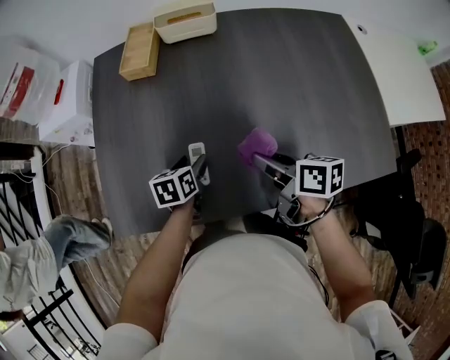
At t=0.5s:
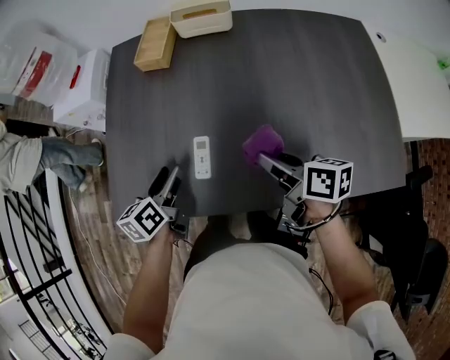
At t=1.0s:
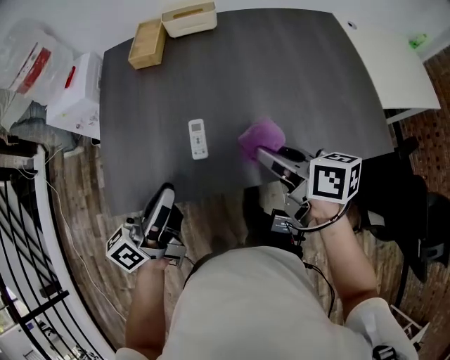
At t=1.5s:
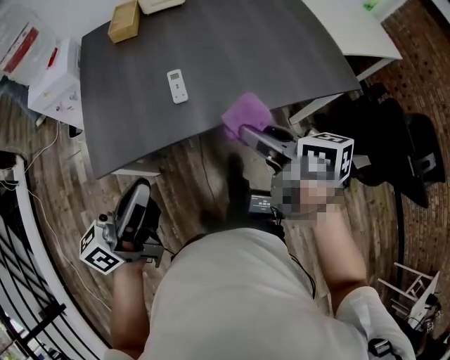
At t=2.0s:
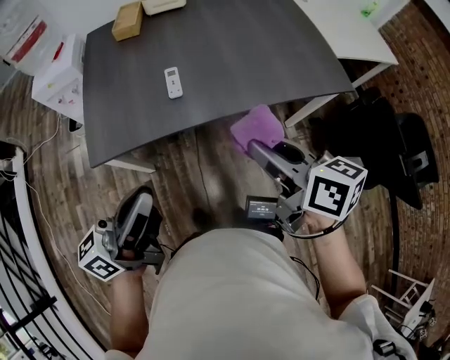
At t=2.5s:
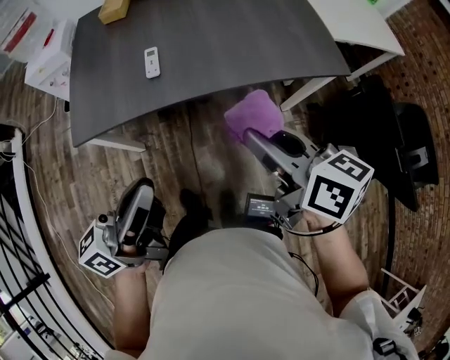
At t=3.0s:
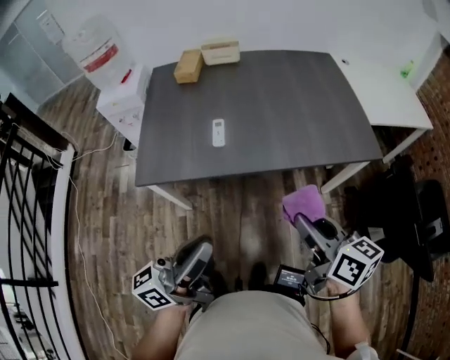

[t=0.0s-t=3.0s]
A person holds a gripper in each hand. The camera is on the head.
t=0.0s to t=1.5s: The left gripper goes some 40 cm backward, upward and to the left, points its fingers roughly 60 degrees further upward, and closes, while the right gripper goes roughly 25 cm backward and upward.
t=1.5s to t=3.0s: The right gripper shifts some 20 cm backward, to the right and upward, while the left gripper moves to the right and backward, about 15 cm.

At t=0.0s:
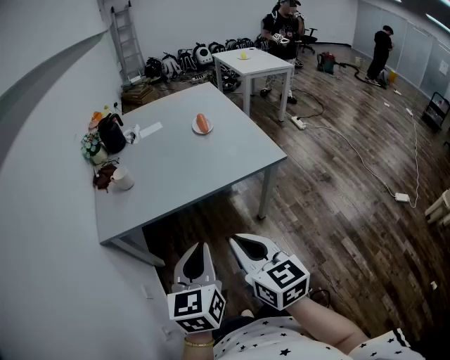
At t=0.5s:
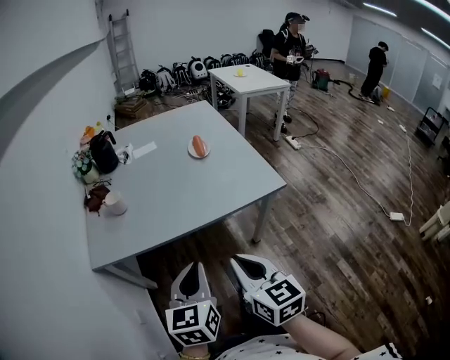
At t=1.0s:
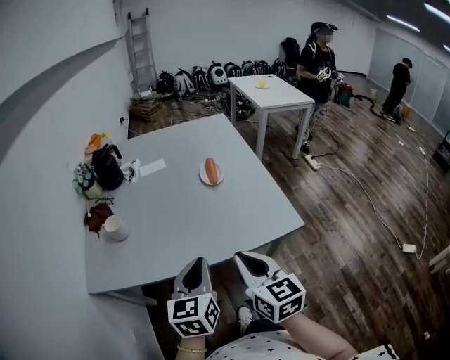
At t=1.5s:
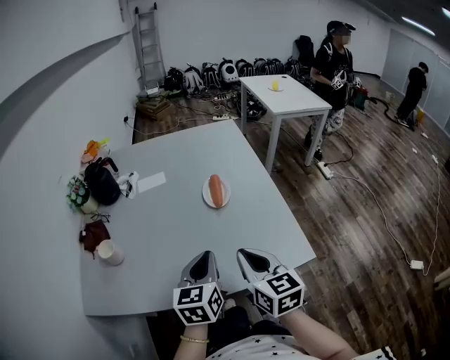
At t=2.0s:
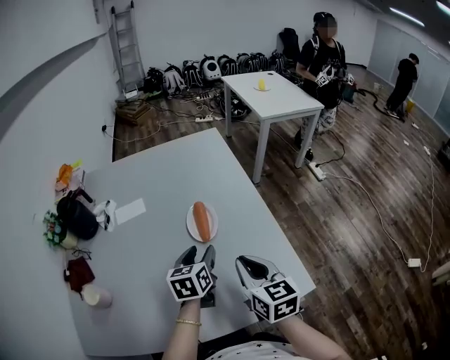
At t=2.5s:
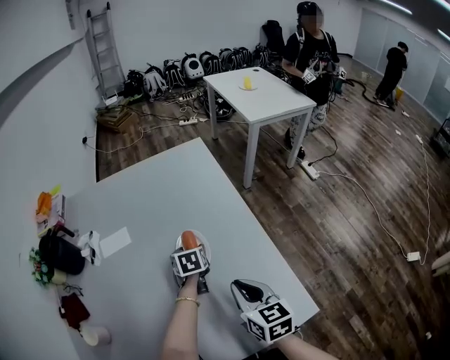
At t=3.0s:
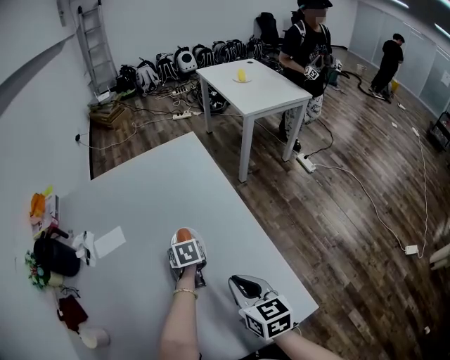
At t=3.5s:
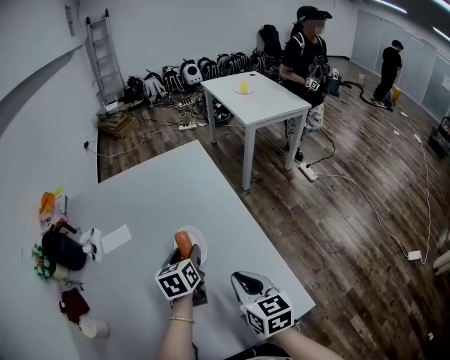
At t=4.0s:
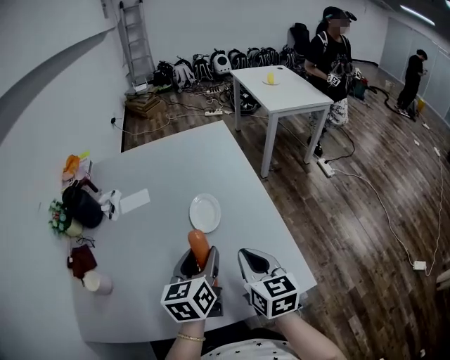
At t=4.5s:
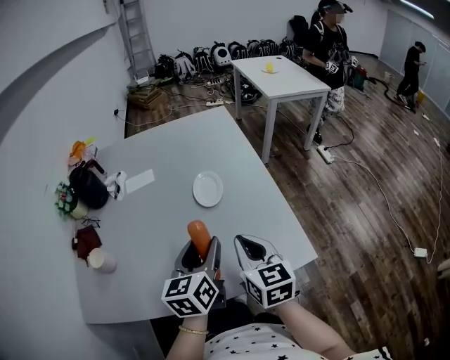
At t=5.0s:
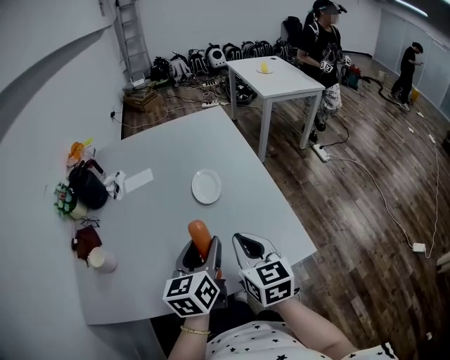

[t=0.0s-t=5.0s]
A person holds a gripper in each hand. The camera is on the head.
t=0.0s to t=2.5s: The two grippers travel together, forward, roughly 70 cm. The left gripper points its fingers roughly 40 degrees further downward, and opens its fingers.
t=2.5s to t=5.0s: The right gripper travels backward by approximately 15 cm; the left gripper is displaced backward and upward by approximately 35 cm, and points its fingers approximately 40 degrees further upward.

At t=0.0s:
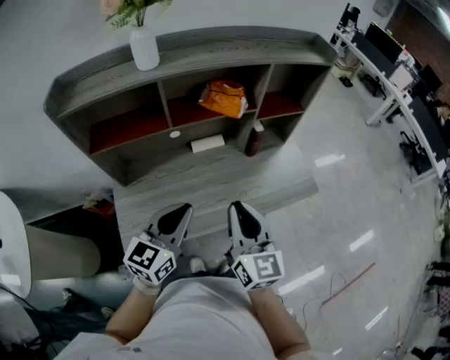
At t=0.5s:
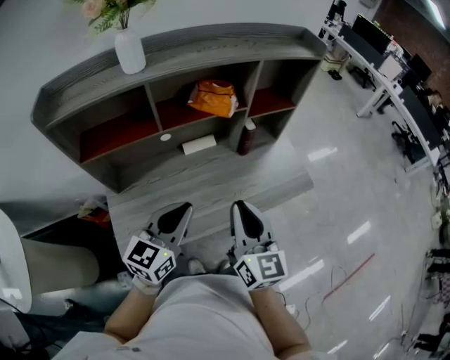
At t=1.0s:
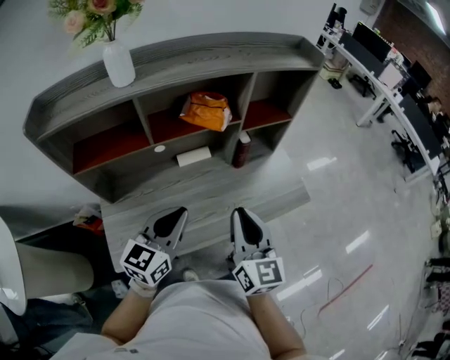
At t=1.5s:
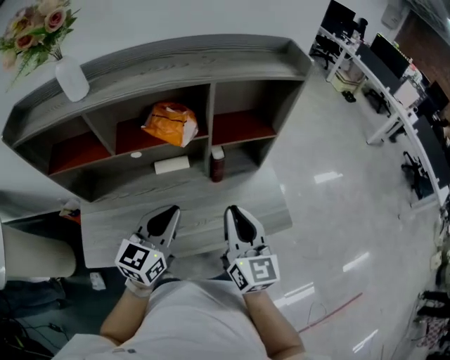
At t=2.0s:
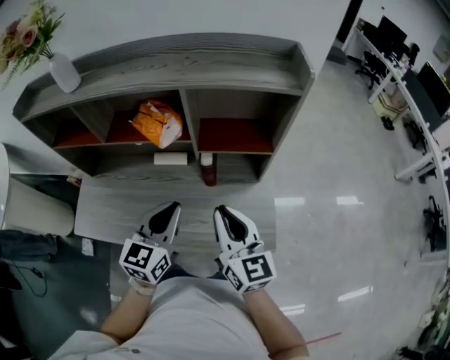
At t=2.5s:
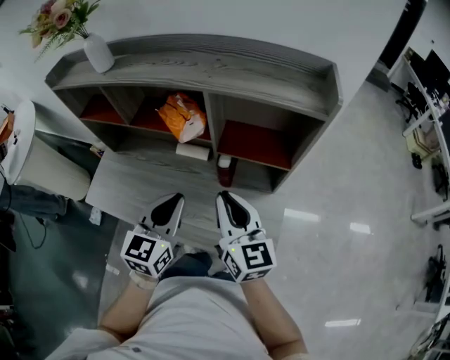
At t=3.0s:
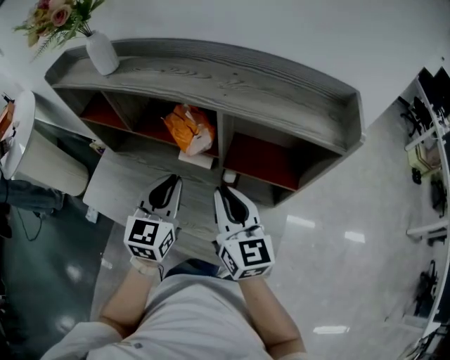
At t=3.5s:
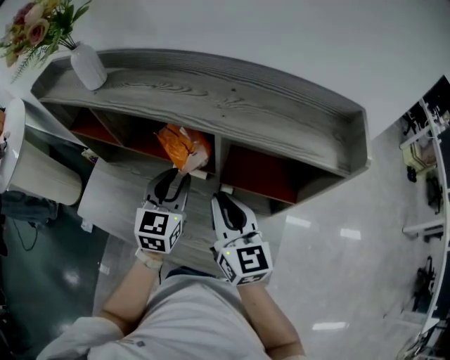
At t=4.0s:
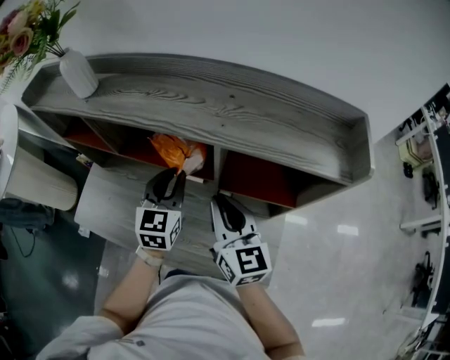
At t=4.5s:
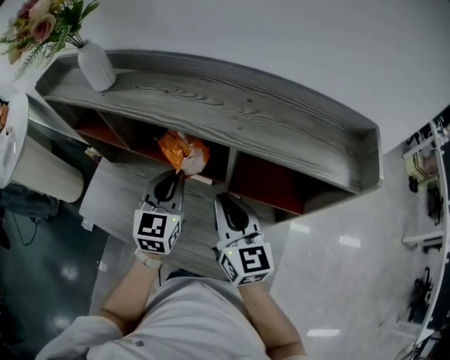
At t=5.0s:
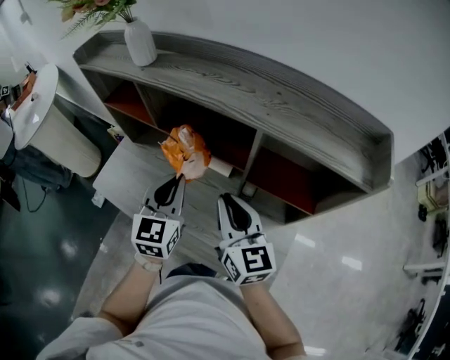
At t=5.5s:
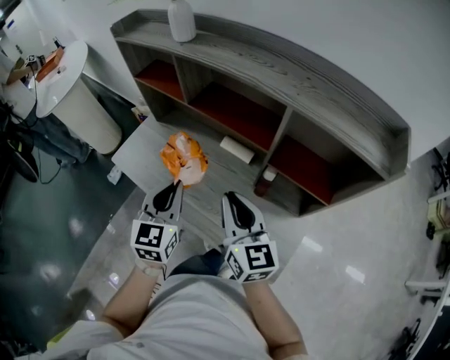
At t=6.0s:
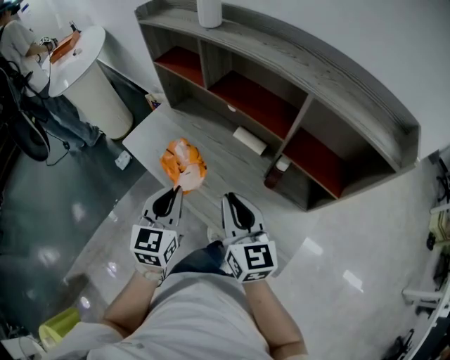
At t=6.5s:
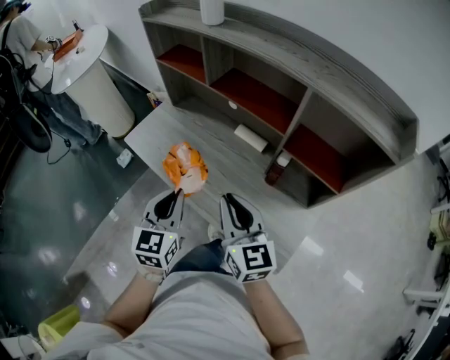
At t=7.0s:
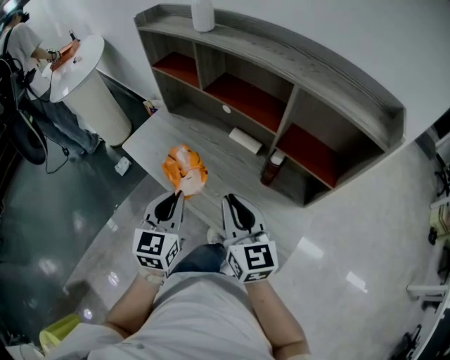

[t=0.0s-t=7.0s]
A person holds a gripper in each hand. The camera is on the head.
t=0.0s to t=2.0s: The right gripper shifts by some 35 cm, and rotates approximately 30 degrees. Meanwhile the left gripper shifts by about 30 cm, and changes its angle by about 30 degrees.
t=2.0s to t=3.5s: Both grippers travel together forward, about 15 cm. The left gripper rotates about 20 degrees.
t=3.5s to t=5.0s: The left gripper shifts approximately 5 cm to the left.
t=5.0s to t=7.0s: The grippers both shift backward and to the left by approximately 20 cm.

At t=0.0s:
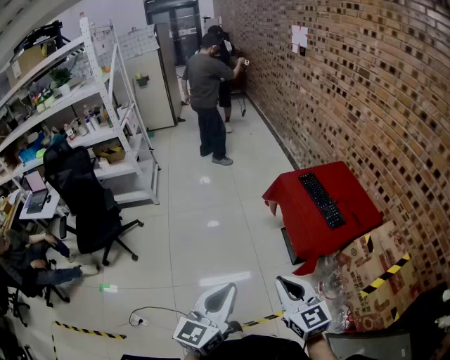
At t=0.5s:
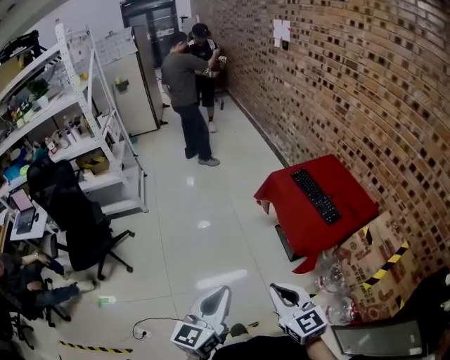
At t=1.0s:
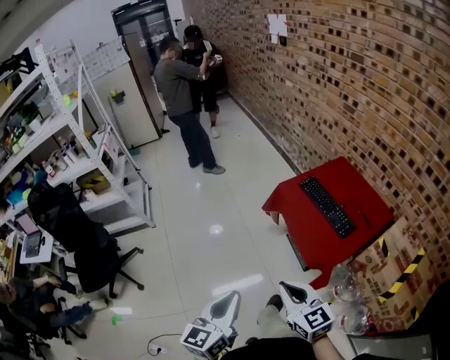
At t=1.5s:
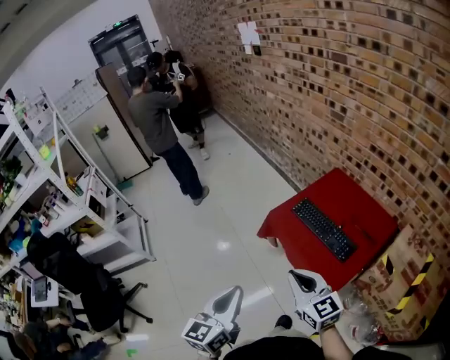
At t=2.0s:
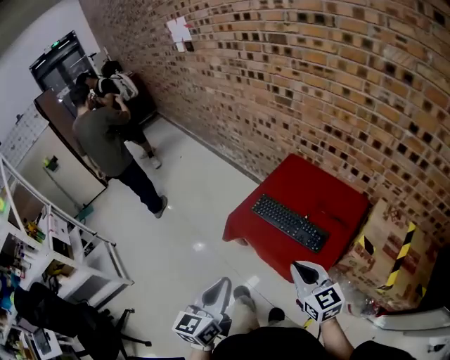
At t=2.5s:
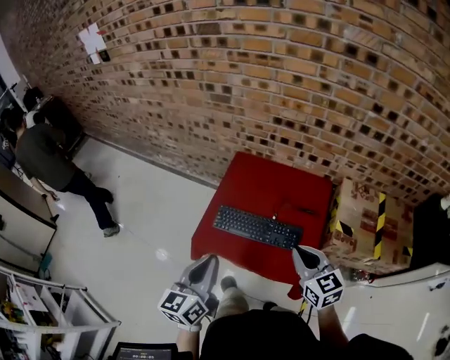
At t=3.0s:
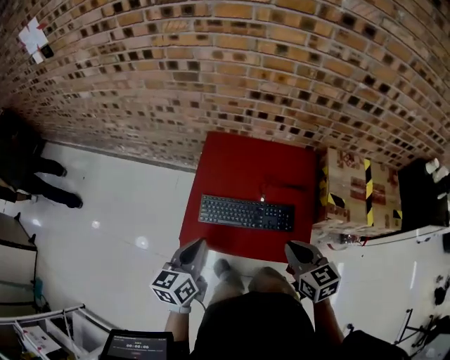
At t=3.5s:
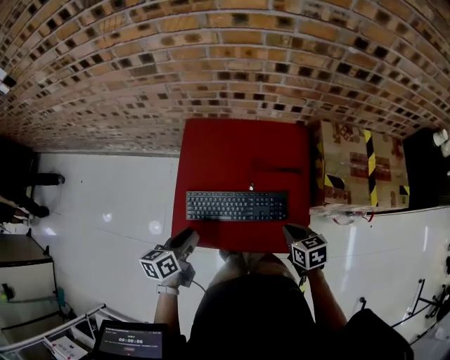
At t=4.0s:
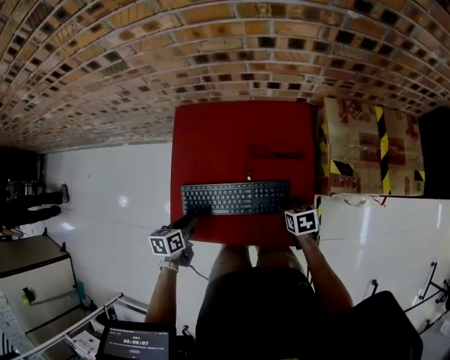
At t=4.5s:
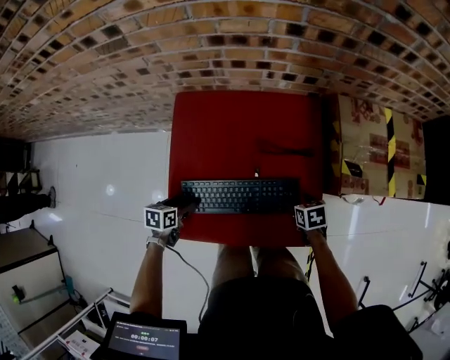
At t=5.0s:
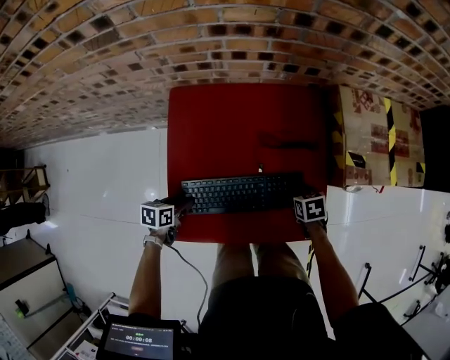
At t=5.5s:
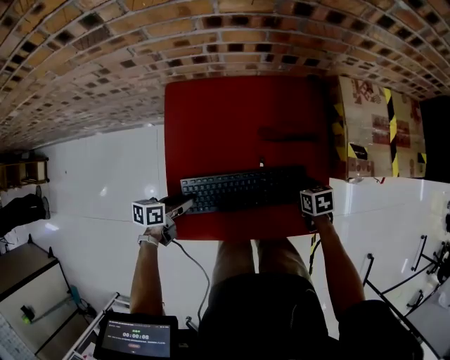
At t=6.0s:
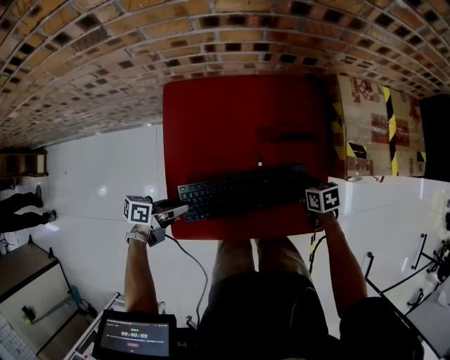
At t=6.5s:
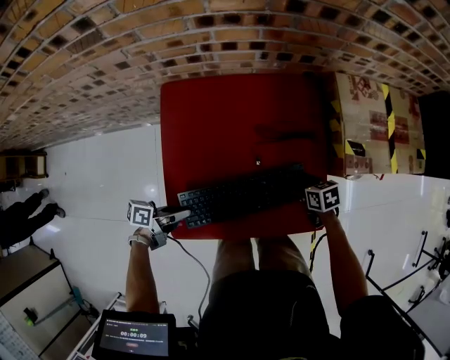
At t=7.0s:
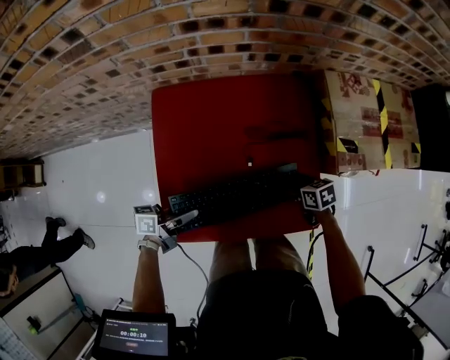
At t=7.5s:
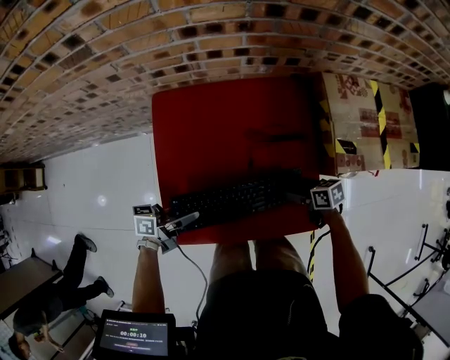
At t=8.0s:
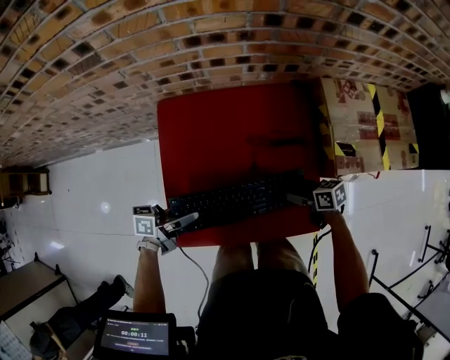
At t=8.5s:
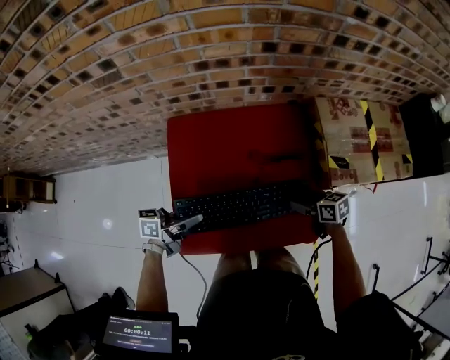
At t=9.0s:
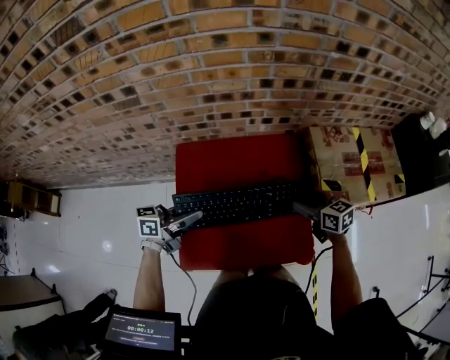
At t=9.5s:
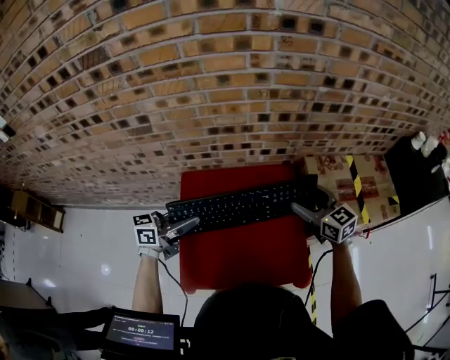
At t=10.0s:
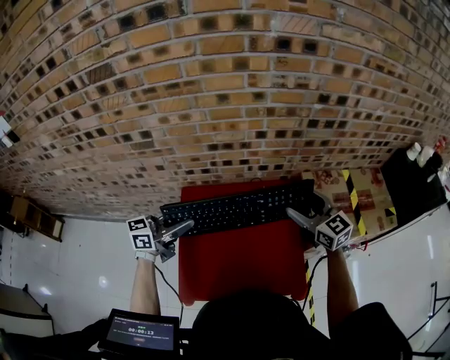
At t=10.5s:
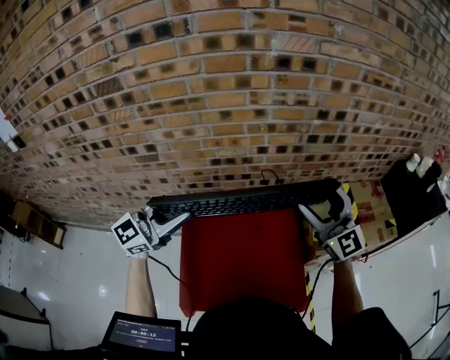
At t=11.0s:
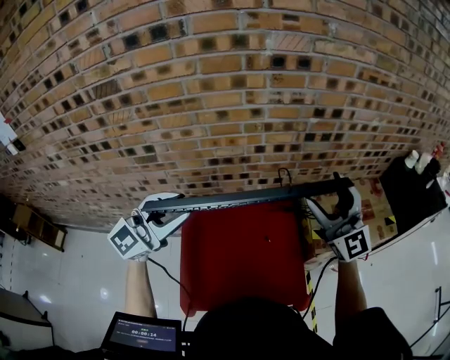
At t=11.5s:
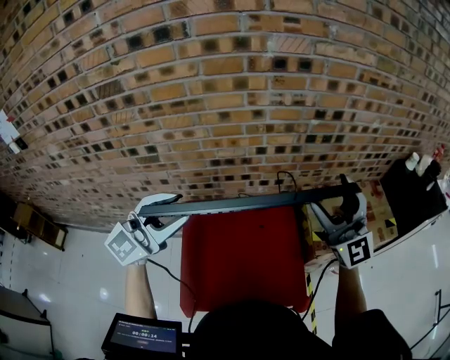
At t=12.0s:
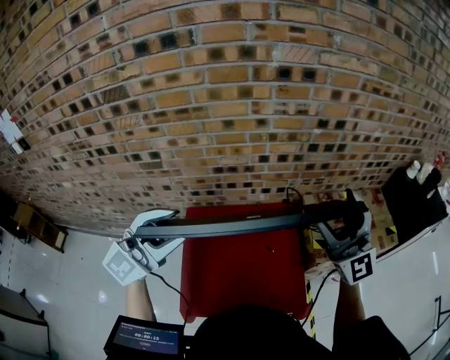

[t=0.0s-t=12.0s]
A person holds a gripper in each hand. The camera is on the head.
t=0.0s to t=2.0s: Both grippers are carried some 40 cm. The right gripper turns by about 30 degrees, while the left gripper swivels roughly 30 degrees.
t=2.0s to t=4.0s: The right gripper goes roughly 30 cm downward, angles its fingers downward, by roughly 50 degrees, and opens up. The left gripper shifts by about 50 cm, points its fingers about 40 degrees further downward, and opens.
t=4.0s to t=6.0s: The left gripper travels downward and back again, about 10 cm each way, rotates approximately 50 degrees, and opens and closes again.
t=6.0s to t=8.0s: The left gripper goes some 10 cm upward, while the right gripper moves upward, about 5 cm, and swivels about 20 degrees.
t=8.0s to t=10.0s: Both grippers move upward, some 30 cm. The left gripper rotates around the line of its fingers by about 40 degrees, clockwise from behind; the right gripper rotates some 60 degrees.
t=10.0s to t=12.0s: The two grippers go some 20 cm upward. The right gripper points its fingers roughly 30 degrees further upward. Meanwhile the left gripper twists roughly 60 degrees clockwise, seen from behind.
